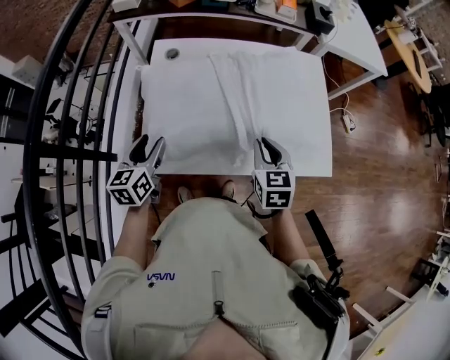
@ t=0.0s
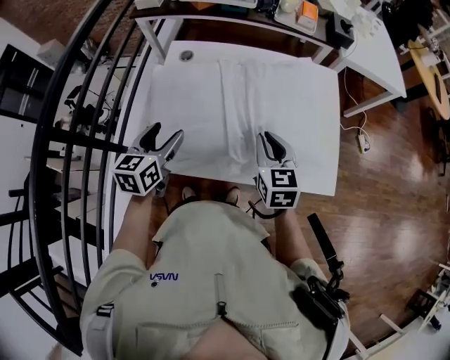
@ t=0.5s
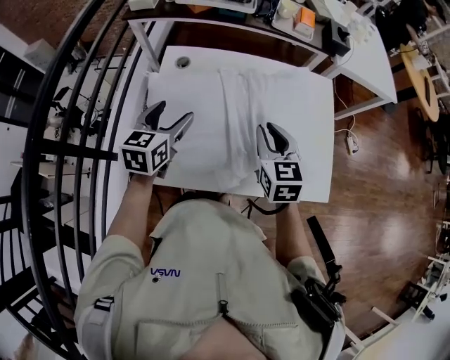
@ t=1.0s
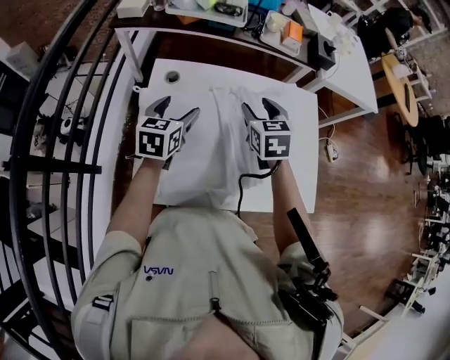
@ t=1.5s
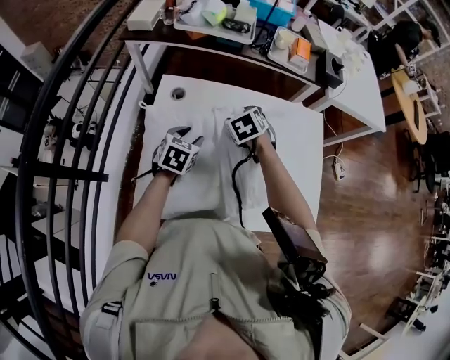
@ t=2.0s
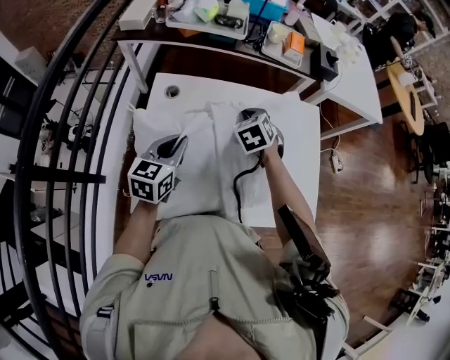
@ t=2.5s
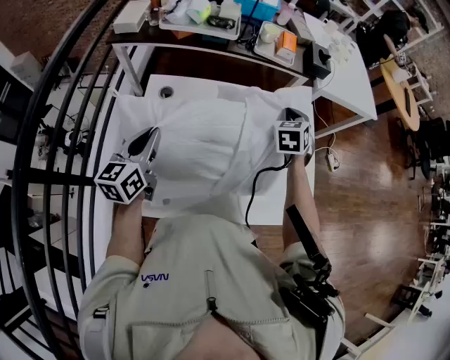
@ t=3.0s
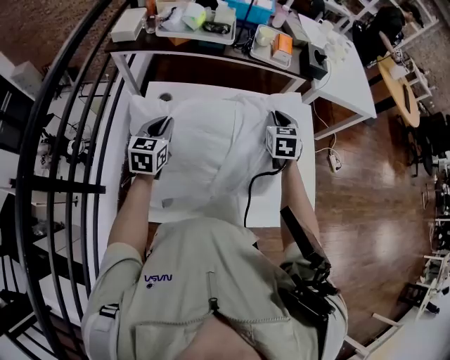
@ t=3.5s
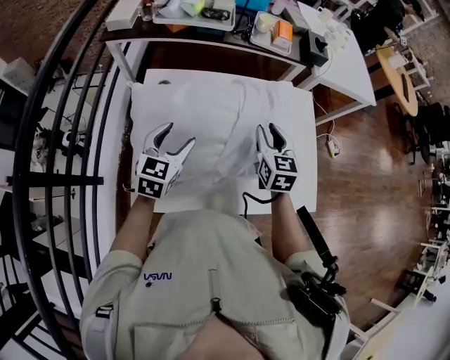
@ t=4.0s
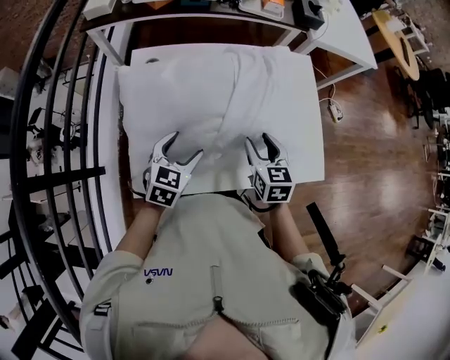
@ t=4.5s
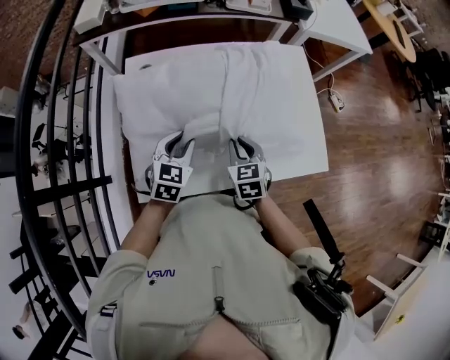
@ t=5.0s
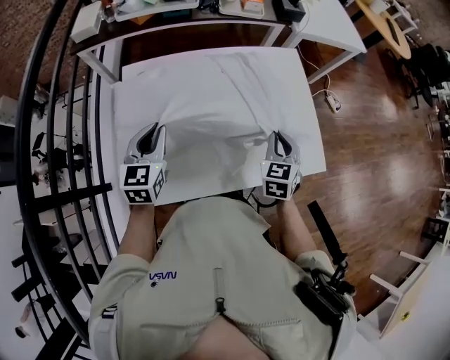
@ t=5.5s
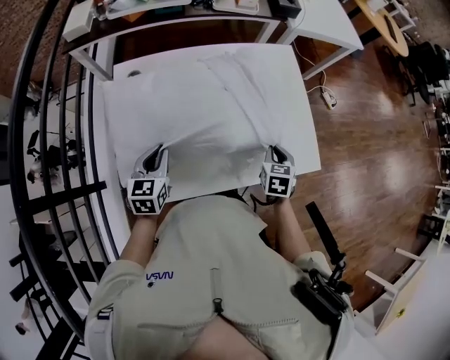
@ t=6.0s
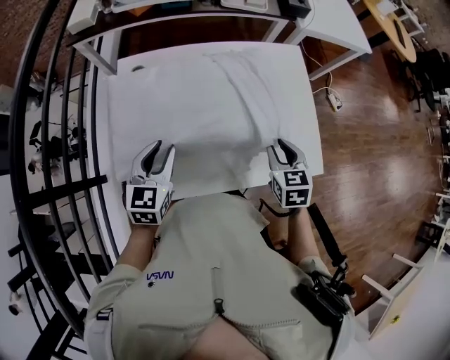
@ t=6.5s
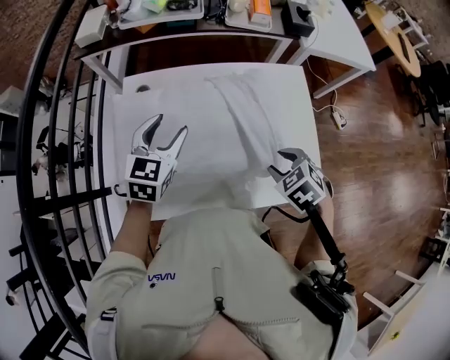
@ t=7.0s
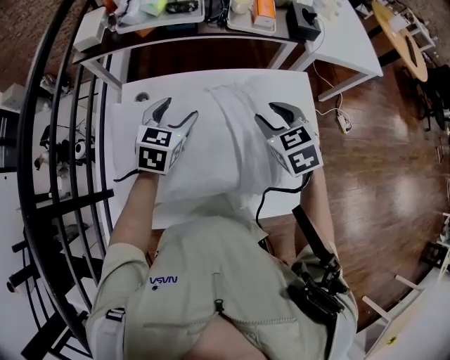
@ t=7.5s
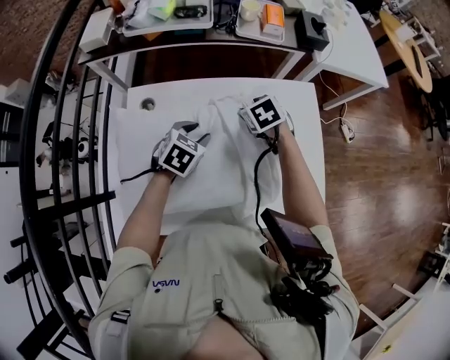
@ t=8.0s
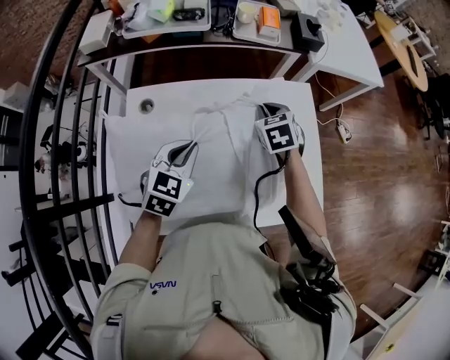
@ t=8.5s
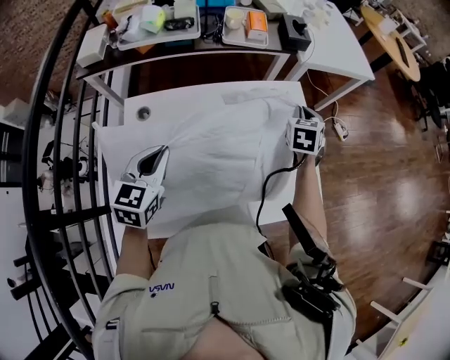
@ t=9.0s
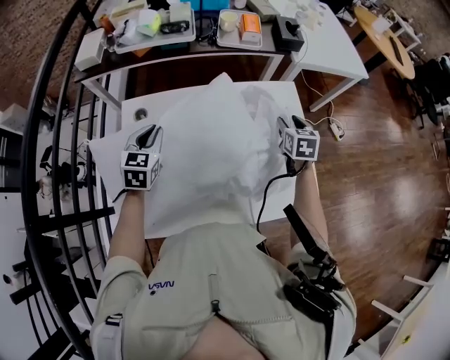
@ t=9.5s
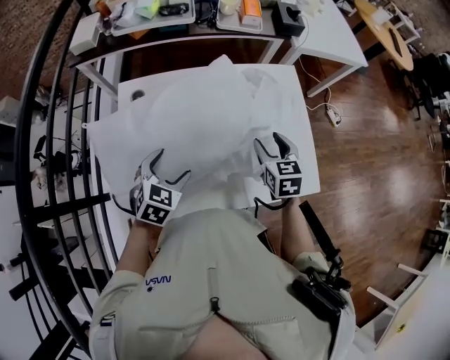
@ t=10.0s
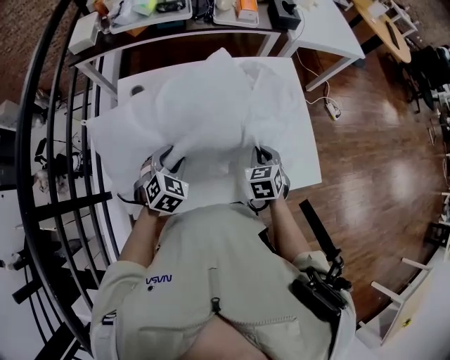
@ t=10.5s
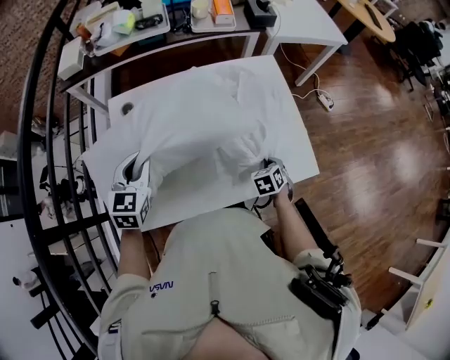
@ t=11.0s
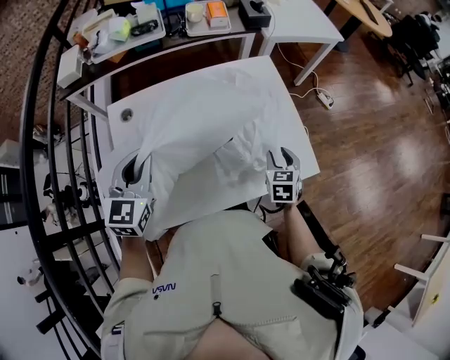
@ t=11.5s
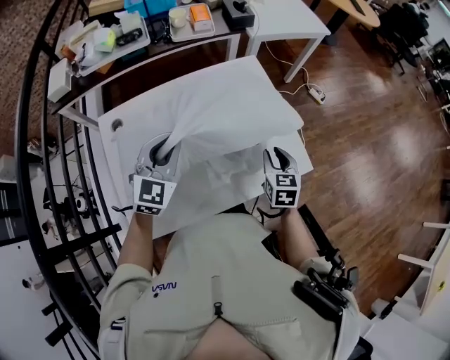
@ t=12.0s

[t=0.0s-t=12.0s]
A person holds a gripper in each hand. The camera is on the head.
t=0.0s to t=2.0s: The left gripper shifts approximately 25 cm forward and to the right, and turns by about 30 degrees; the right gripper moves forward, approximately 30 cm, swivels about 30 degrees, and opens up.
t=2.0s to t=4.0s: The left gripper is displaced upward and backward by approximately 10 cm, and closes and opens again. Meanwhile the right gripper moves to the right, backward and upward, about 20 cm, tips its fingers upward by roughly 30 degrees, and closes.
t=4.0s to t=6.0s: The right gripper moves to the right, downward and backward, roughly 25 cm, and turns by approximately 30 degrees; the left gripper goes up and down, some 10 cm each way, reversing 2 times, and closes its fingers.
t=6.0s to t=8.0s: The left gripper heads forward and to the right, covering roughly 20 cm, changes its angle by some 30 degrees, and opens up. The right gripper moves forward and to the left, about 30 cm, swivels roughly 40 degrees, and opens its fingers.
t=8.0s to t=10.0s: The left gripper moves forward and backward over about 15 cm, changing direction 2 times, and opens; the right gripper shifts approximately 20 cm backward and to the right, swivels some 30 degrees, and closes, then opens again.
t=10.0s to t=12.0s: The left gripper moves upward, forward and to the right, some 15 cm, rotates about 30 degrees, and closes its fingers. Meanwhile the right gripper shifts about 10 cm to the right and backward, travels downward and back again, about 15 cm each way, swivels about 20 degrees, and closes its fingers.

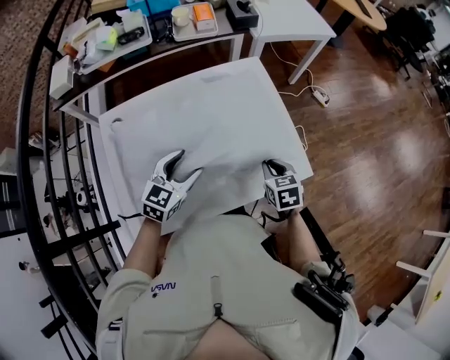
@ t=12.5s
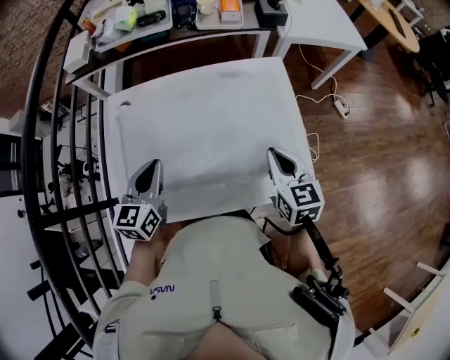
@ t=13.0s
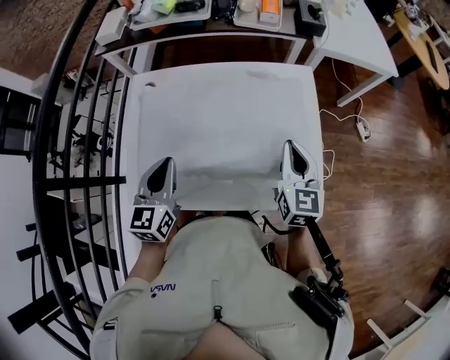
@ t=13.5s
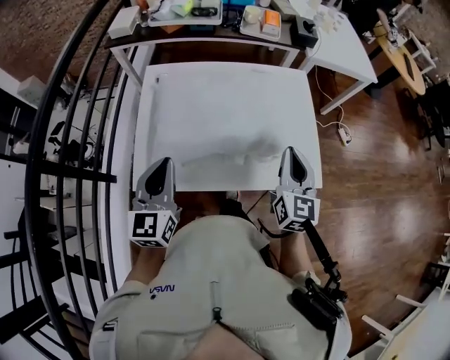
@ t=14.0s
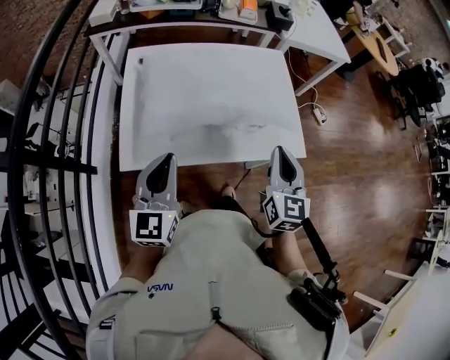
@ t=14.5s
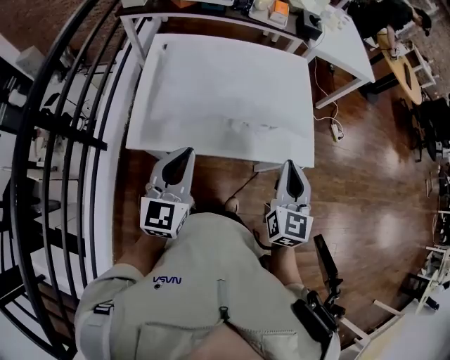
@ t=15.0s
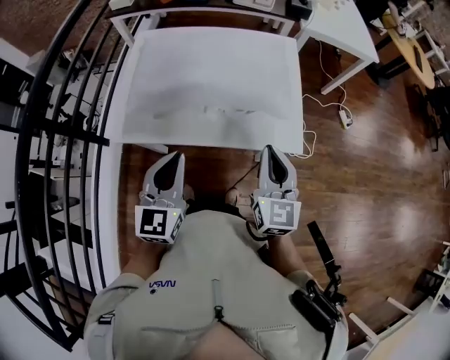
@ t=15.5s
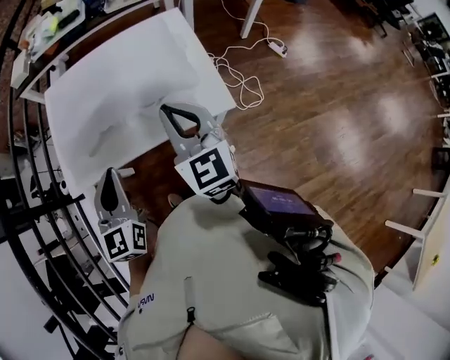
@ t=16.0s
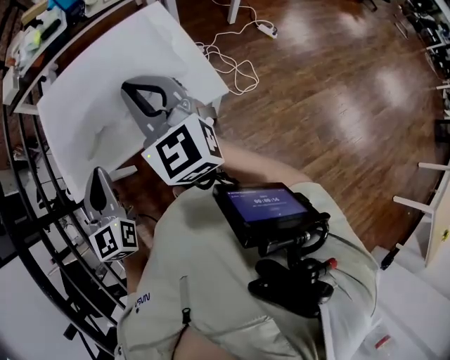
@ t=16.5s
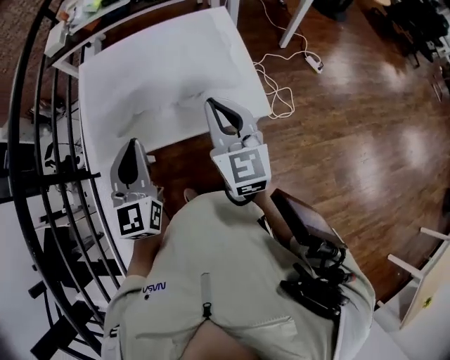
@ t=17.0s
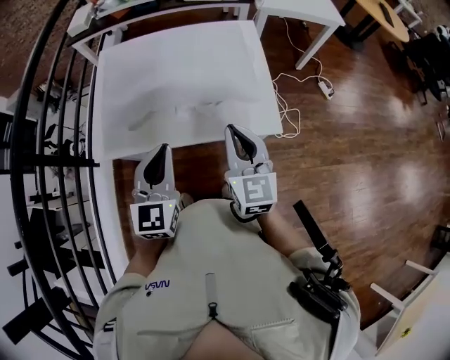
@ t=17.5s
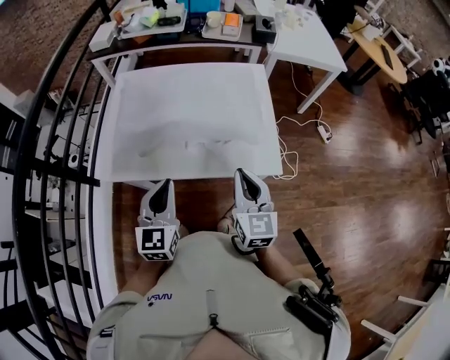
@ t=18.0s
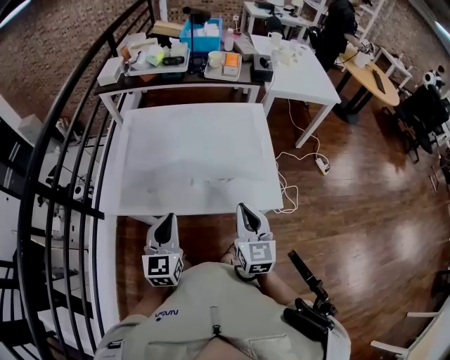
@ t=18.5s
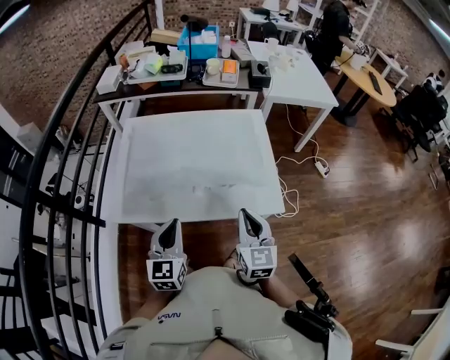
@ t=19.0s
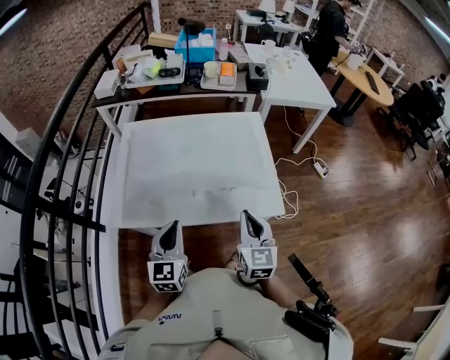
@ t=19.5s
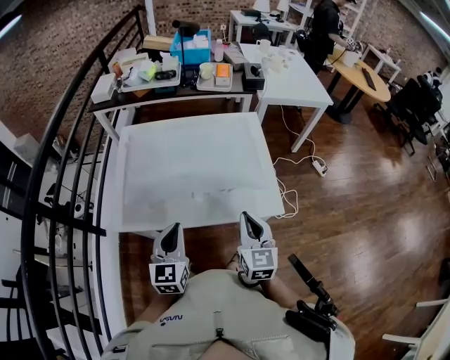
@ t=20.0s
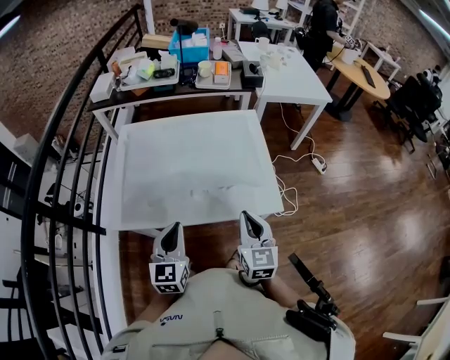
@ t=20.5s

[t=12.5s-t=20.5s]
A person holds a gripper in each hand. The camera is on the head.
t=12.5s to t=14.5s: The right gripper goes roughly 20 cm upward, and angles its fingers upward, by approximately 40 degrees, while the left gripper shifts by approximately 25 cm, changes its angle by roughly 40 degrees, and closes its fingers.
t=14.5s to t=16.5s: The left gripper goes about 15 cm to the right; the right gripper is displaced upward by roughly 10 cm, and rotates roughly 20 degrees.
t=16.5s to t=18.5s: The right gripper is displaced downward by roughly 15 cm.
t=18.5s to t=20.5s: The grippers stay close to where they were, moving slightly.

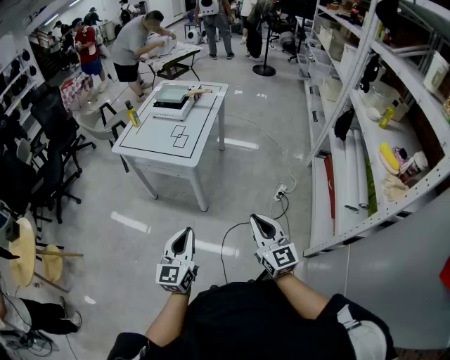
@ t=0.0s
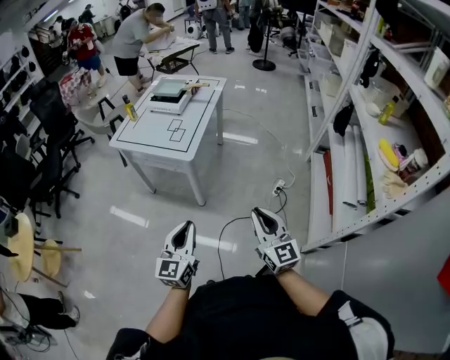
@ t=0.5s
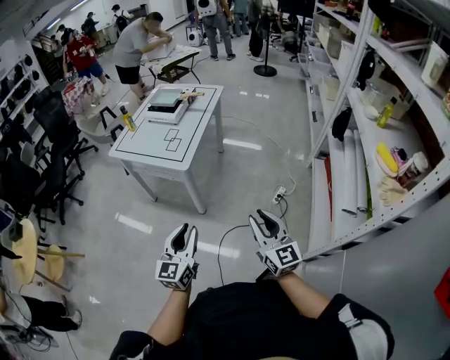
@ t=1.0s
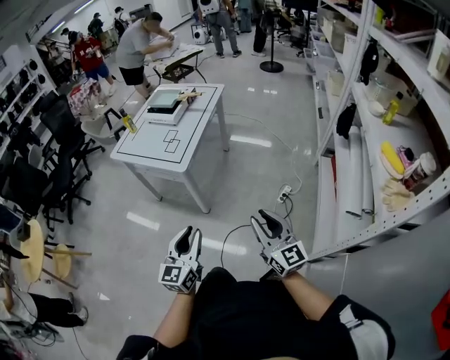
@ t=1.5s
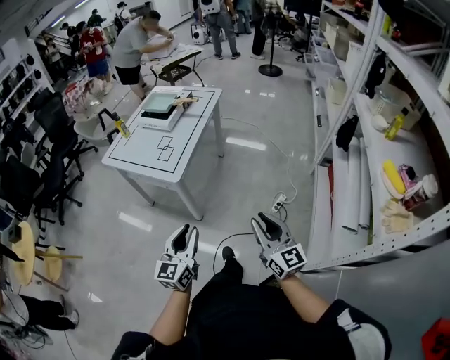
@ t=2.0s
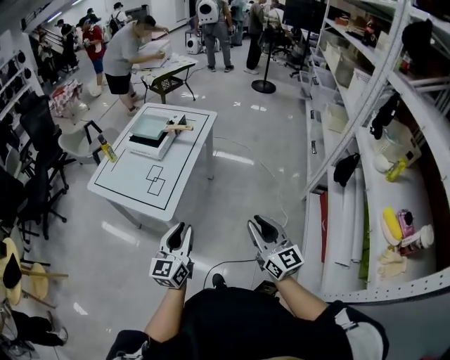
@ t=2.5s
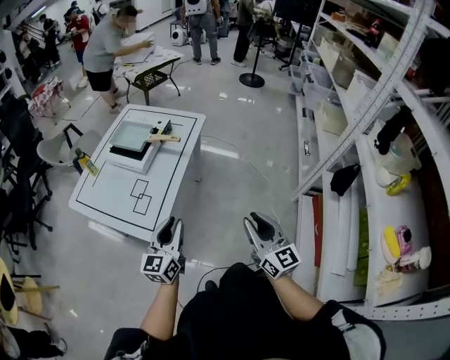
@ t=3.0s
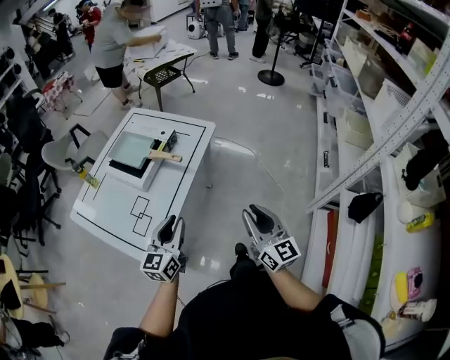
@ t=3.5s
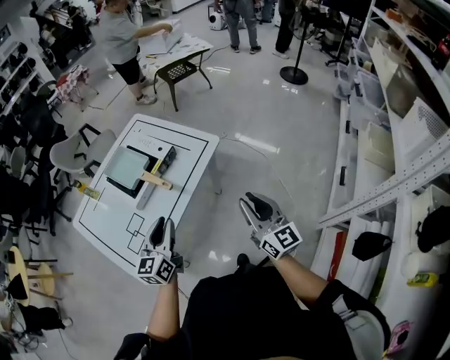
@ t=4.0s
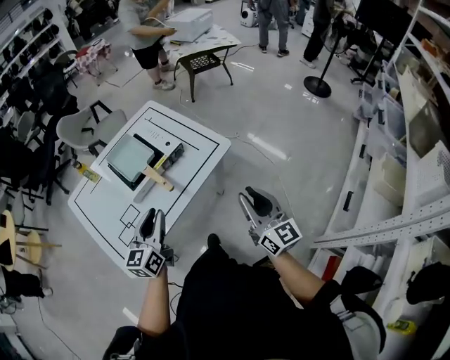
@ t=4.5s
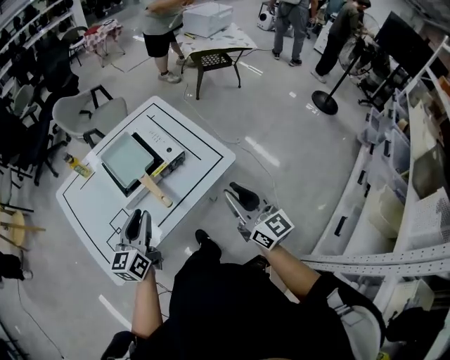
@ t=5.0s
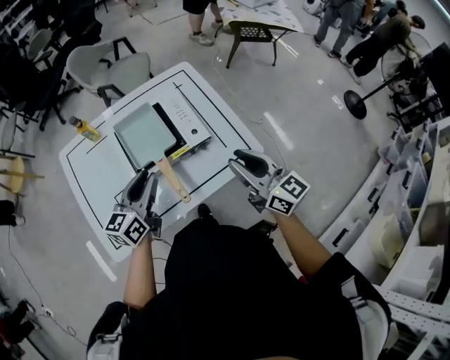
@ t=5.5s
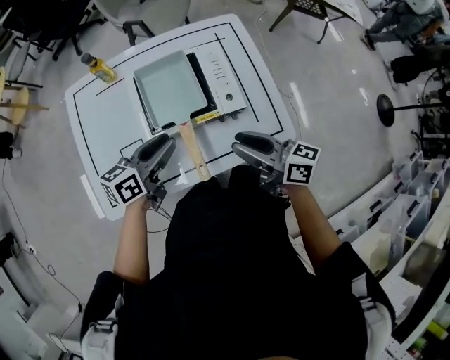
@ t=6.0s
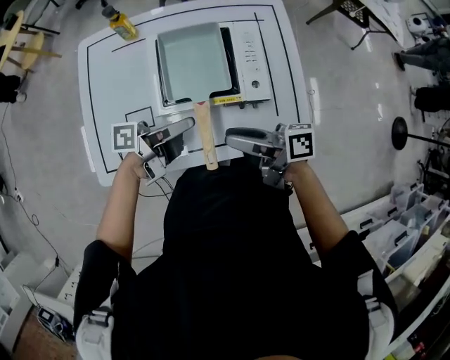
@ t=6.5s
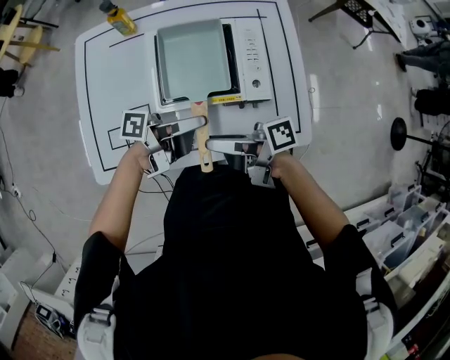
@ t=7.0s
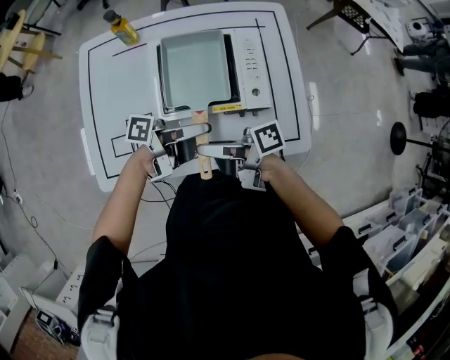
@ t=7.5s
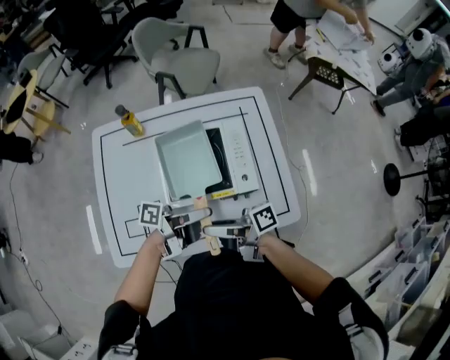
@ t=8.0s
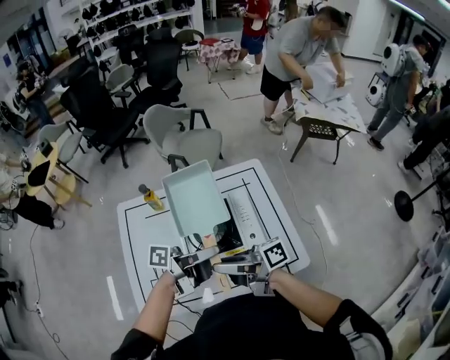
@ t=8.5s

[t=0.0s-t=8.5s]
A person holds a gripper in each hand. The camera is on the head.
t=0.0s to t=2.0s: Both grippers move to the right and forward, some 15 cm. The right gripper opens up.
t=2.0s to t=4.0s: The two grippers travel together, forward, about 60 cm.
t=4.0s to t=6.5s: The left gripper moves about 25 cm, and rotates around the line of its fingers by approximately 70 degrees, counterclockwise from behind; the right gripper moves about 40 cm, and swivels about 110 degrees.
t=6.5s to t=8.5s: Both grippers travel together upward, about 15 cm.
